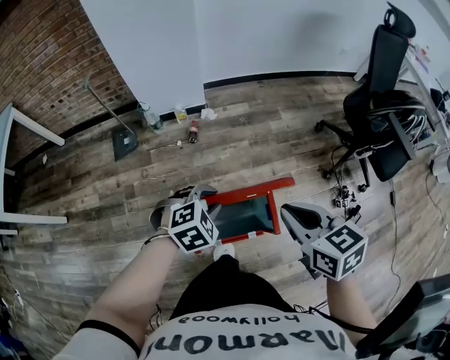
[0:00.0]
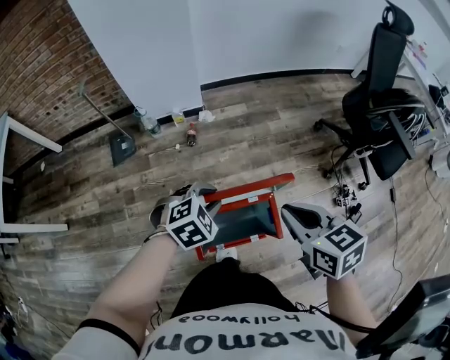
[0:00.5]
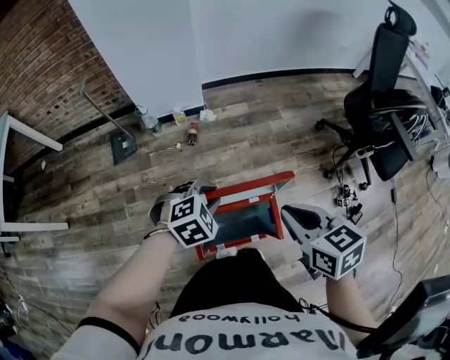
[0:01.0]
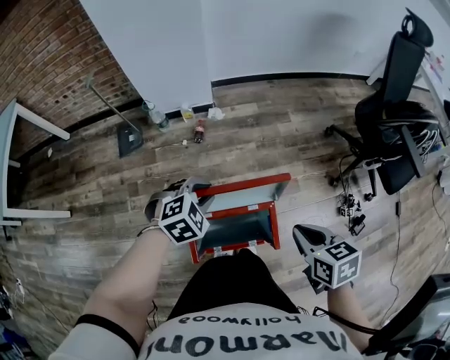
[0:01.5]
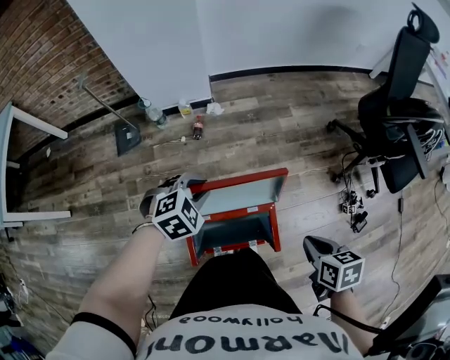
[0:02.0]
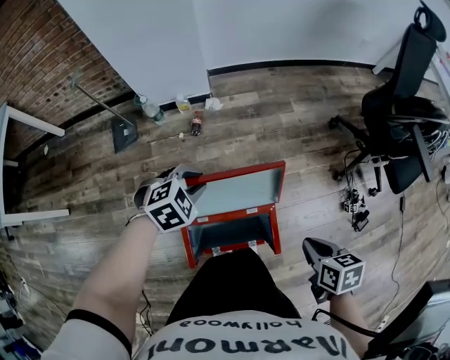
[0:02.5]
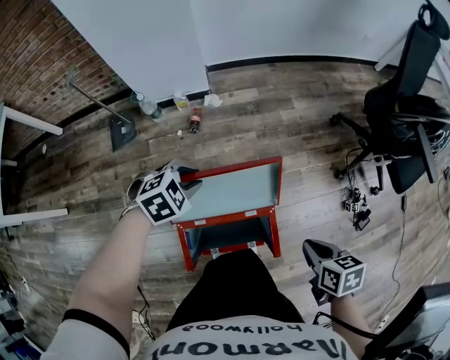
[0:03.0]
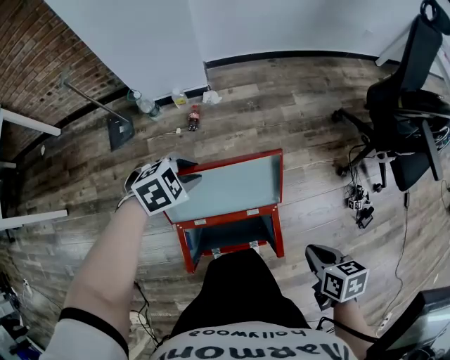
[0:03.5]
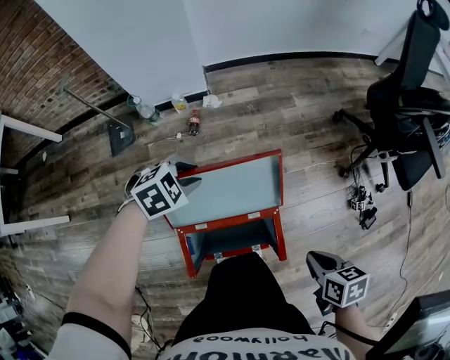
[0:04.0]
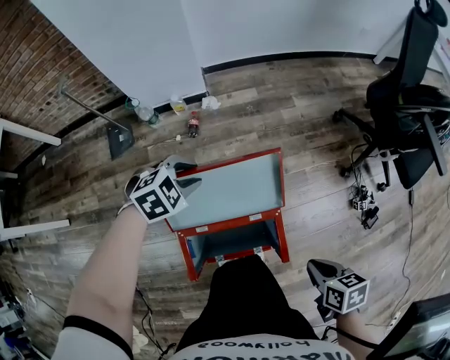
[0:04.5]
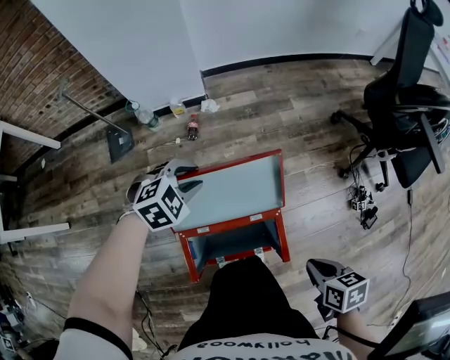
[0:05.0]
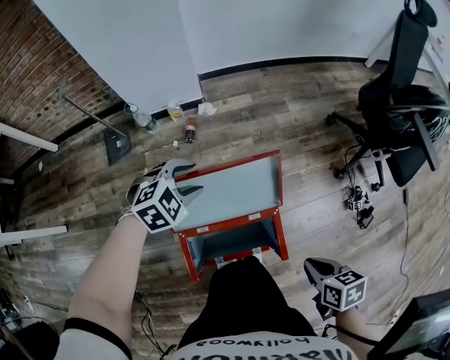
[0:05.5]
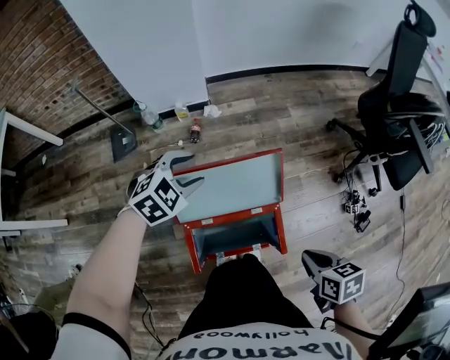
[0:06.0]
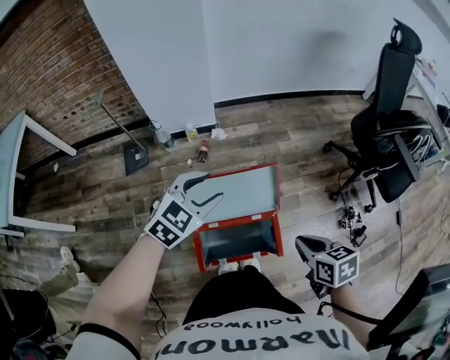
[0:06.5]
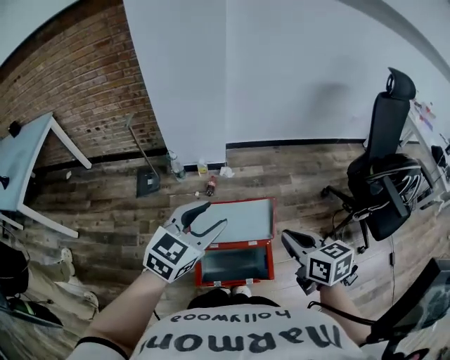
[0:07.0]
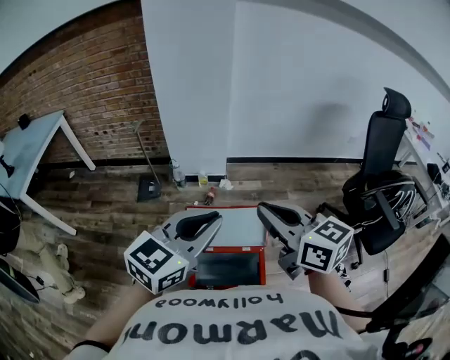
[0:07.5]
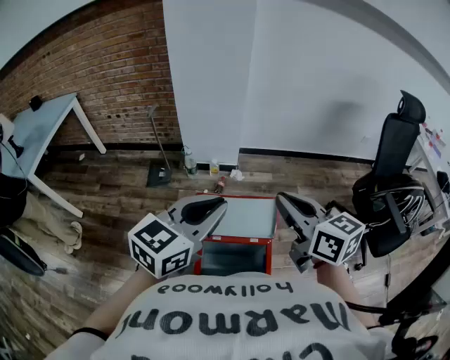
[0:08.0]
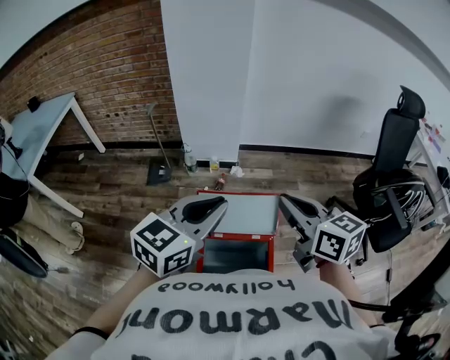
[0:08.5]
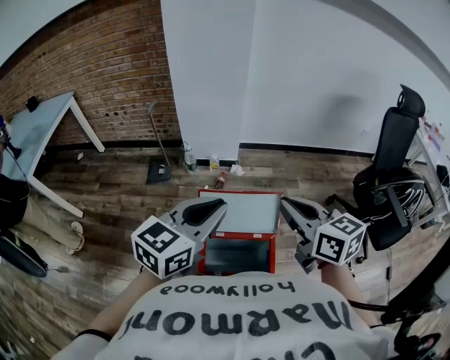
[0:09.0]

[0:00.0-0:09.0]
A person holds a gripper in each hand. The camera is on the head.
0:00.0 to 0:02.0: The right gripper shifts about 15 cm downward and to the right, and turns by approximately 30 degrees. The left gripper is displaced forward by about 10 cm.
0:02.0 to 0:04.5: The right gripper moves downward, roughly 5 cm. Meanwhile the left gripper heads forward and downward, covering some 10 cm.
0:04.5 to 0:07.0: The left gripper is displaced upward and backward by approximately 35 cm, angles its fingers upward, by some 40 degrees, and opens its fingers; the right gripper travels upward and to the left by some 25 cm, and turns by roughly 40 degrees.
0:07.0 to 0:09.0: The right gripper is displaced upward and to the left by approximately 10 cm; the left gripper shifts roughly 10 cm upward and backward, and closes up.

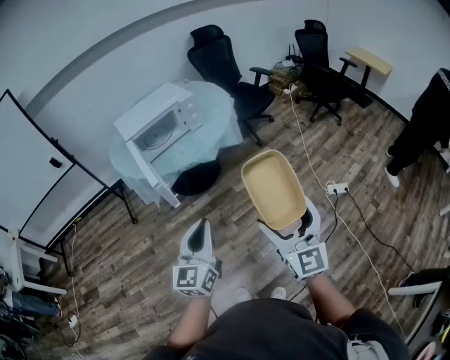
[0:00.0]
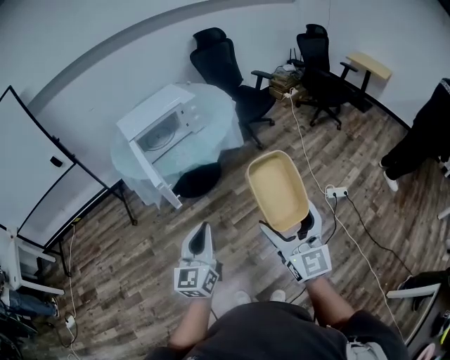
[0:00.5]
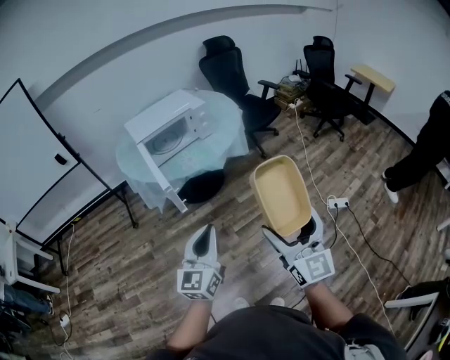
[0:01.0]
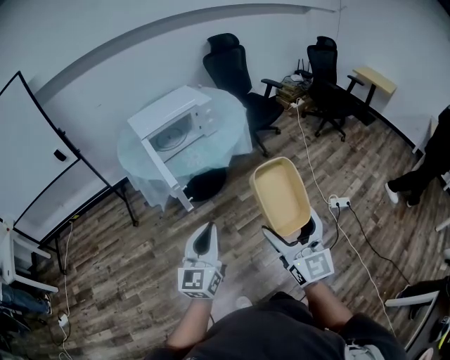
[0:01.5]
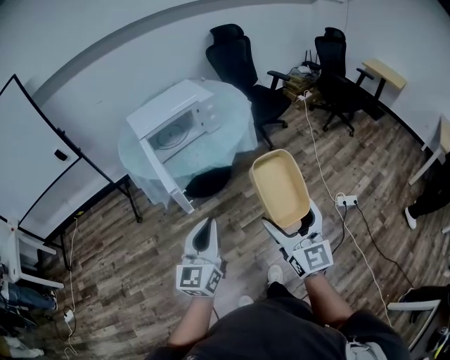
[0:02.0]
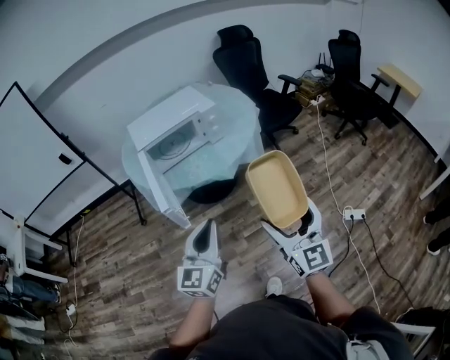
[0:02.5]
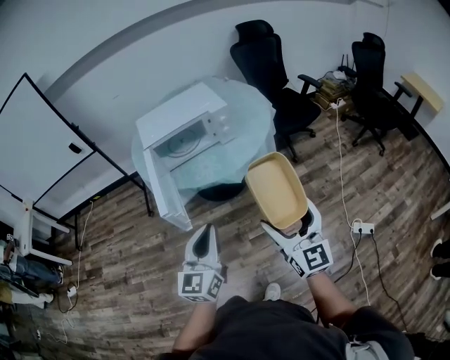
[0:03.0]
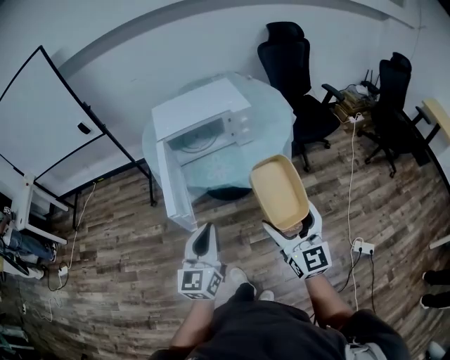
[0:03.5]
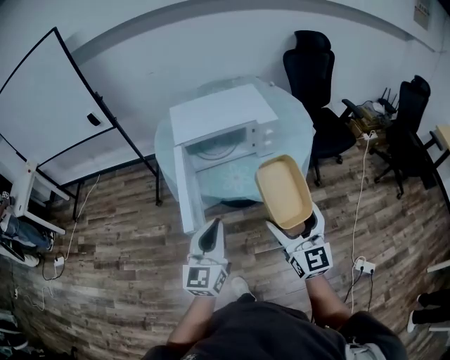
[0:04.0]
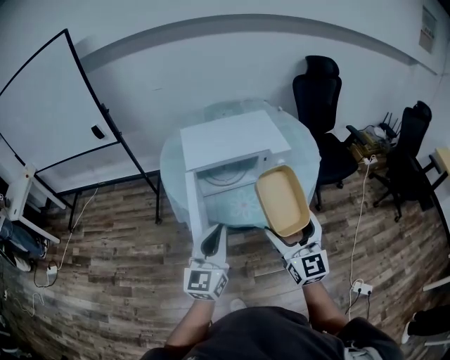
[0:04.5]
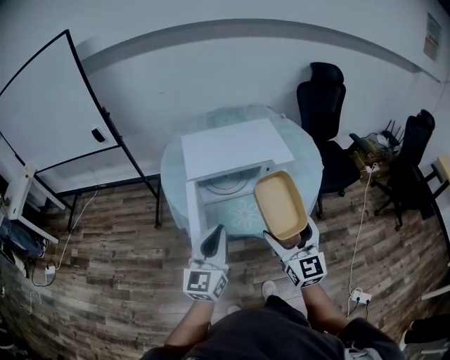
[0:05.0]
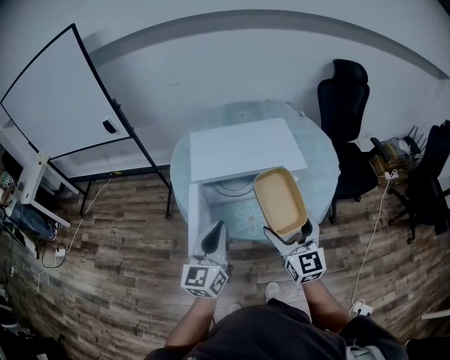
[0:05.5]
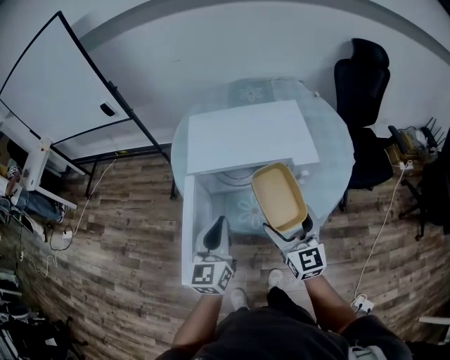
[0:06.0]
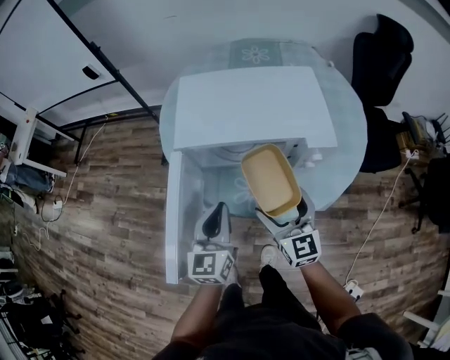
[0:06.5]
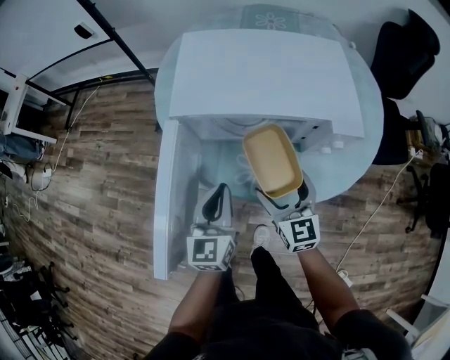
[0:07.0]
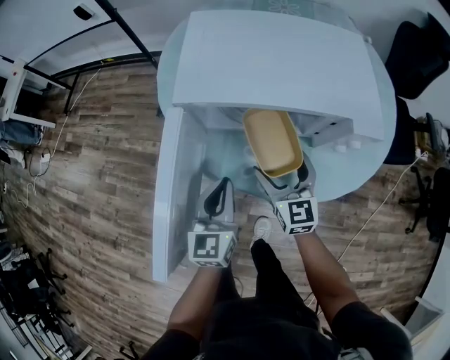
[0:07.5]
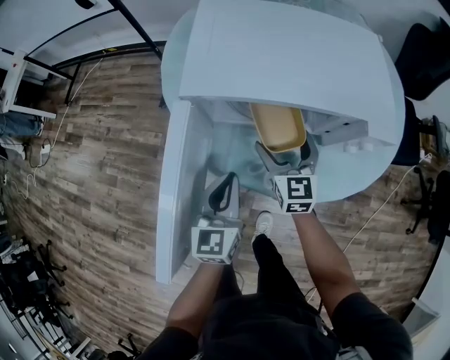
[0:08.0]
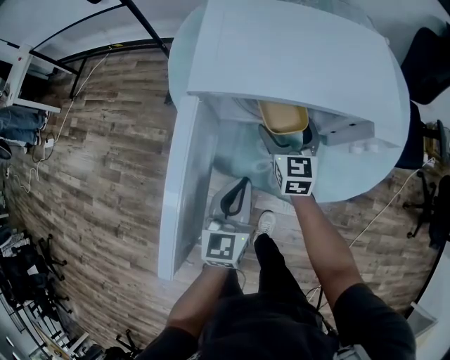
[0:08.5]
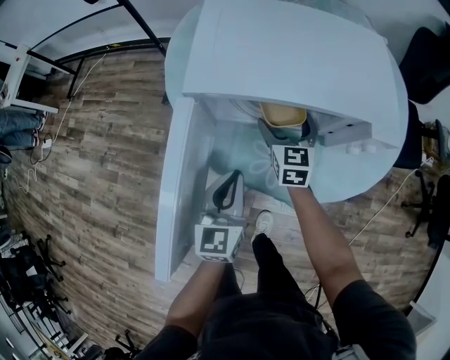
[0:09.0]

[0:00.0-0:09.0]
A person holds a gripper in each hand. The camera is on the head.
0:00.0 to 0:02.0: Both grippers move forward and to the left, about 10 cm.
0:02.0 to 0:04.5: The two grippers go roughly 35 cm forward. The right gripper turns by roughly 20 degrees. Meanwhile the left gripper rotates roughly 20 degrees.
0:04.5 to 0:07.0: The two grippers go roughly 30 cm downward and forward. The left gripper turns by approximately 30 degrees. The right gripper rotates roughly 30 degrees.
0:07.0 to 0:09.0: The right gripper shifts roughly 20 cm forward and downward.

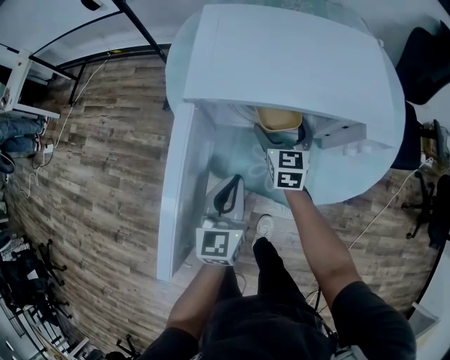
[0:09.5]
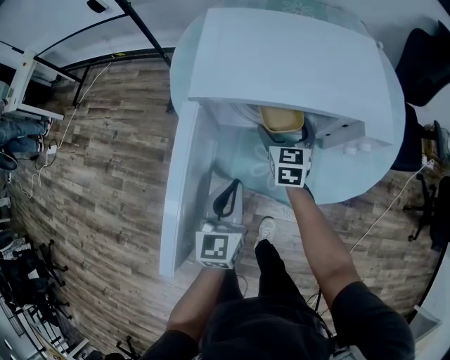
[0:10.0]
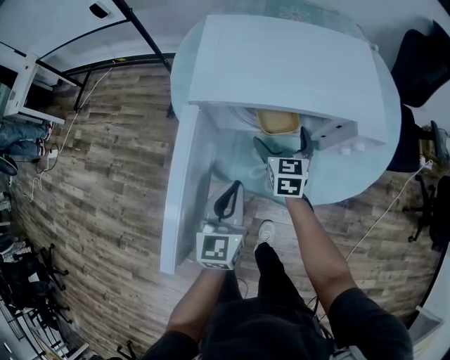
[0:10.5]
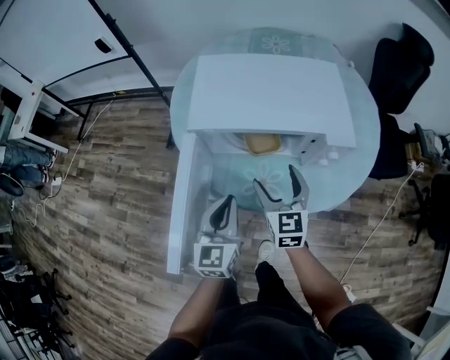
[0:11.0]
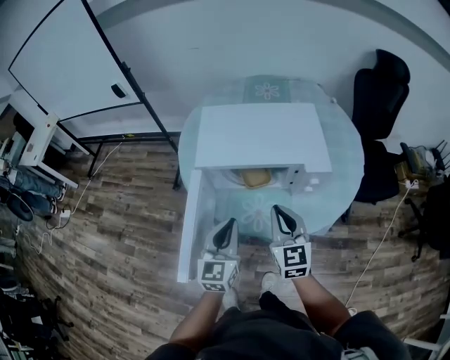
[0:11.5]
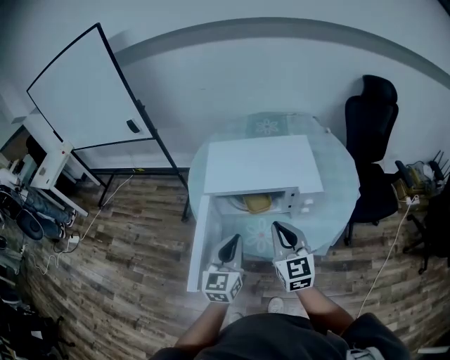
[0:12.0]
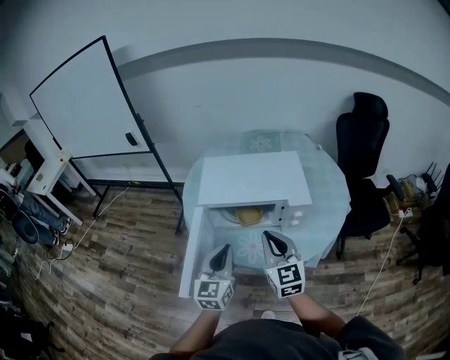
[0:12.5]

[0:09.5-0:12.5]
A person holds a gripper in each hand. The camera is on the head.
0:09.5 to 0:11.0: The left gripper moves upward, some 5 cm. The right gripper heads backward and upward, covering approximately 15 cm.
0:11.0 to 0:12.5: The grippers both shift upward and backward by roughly 15 cm. The right gripper closes.

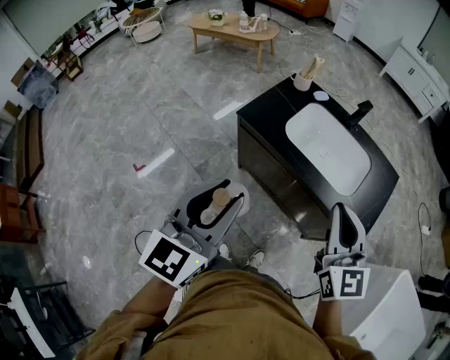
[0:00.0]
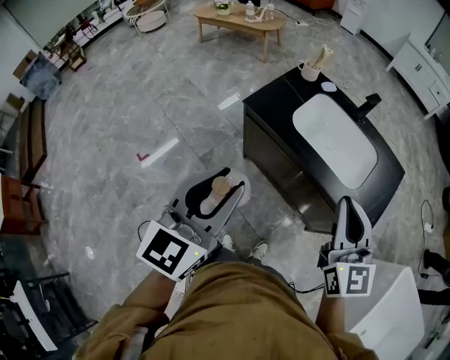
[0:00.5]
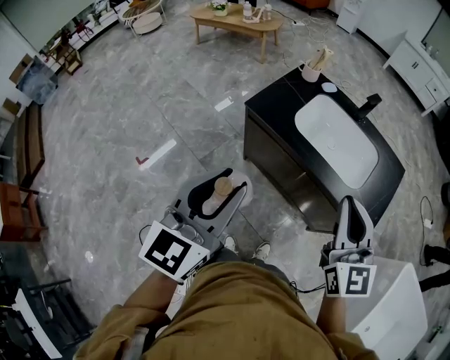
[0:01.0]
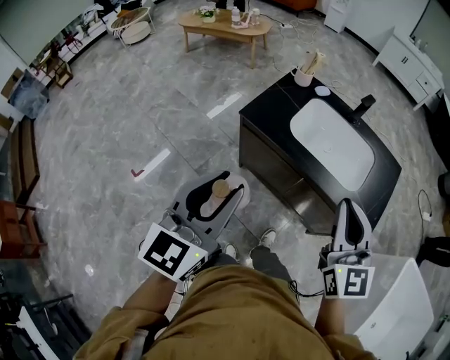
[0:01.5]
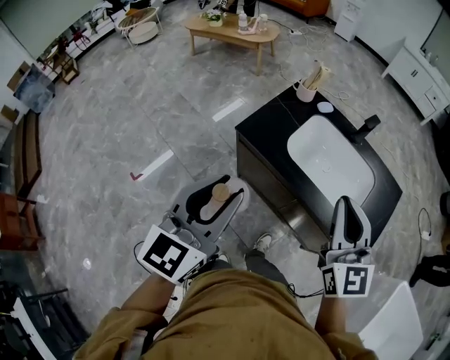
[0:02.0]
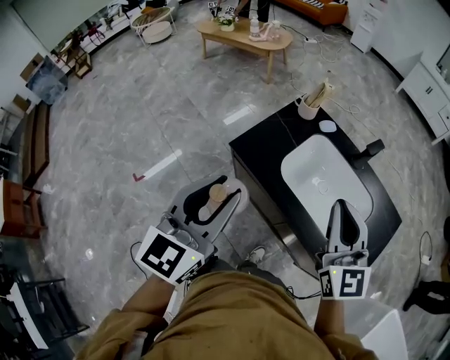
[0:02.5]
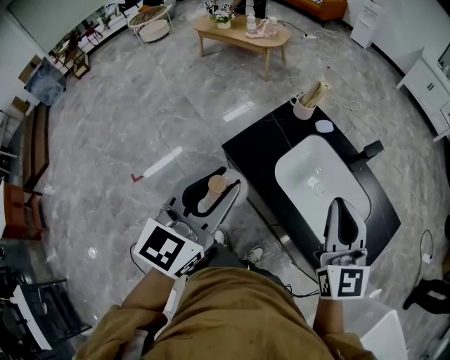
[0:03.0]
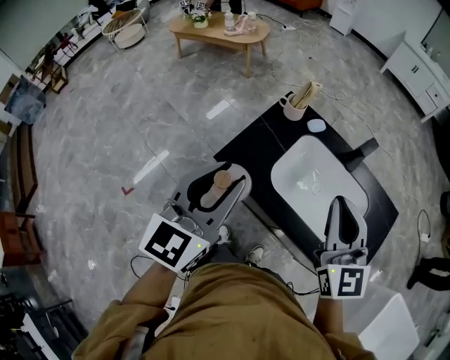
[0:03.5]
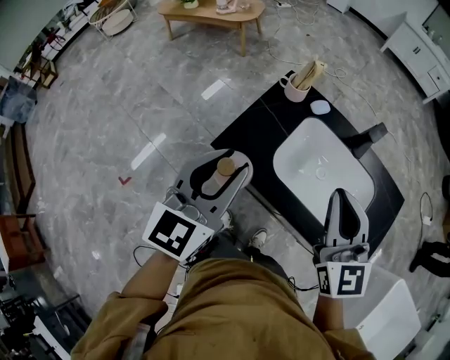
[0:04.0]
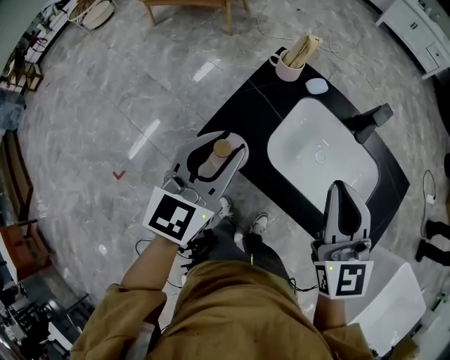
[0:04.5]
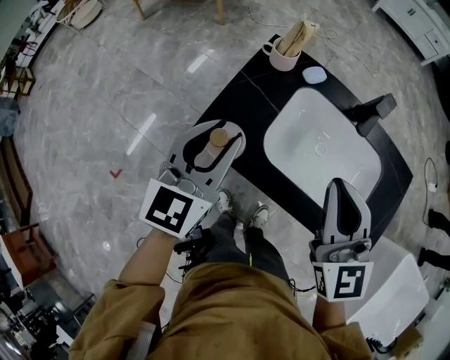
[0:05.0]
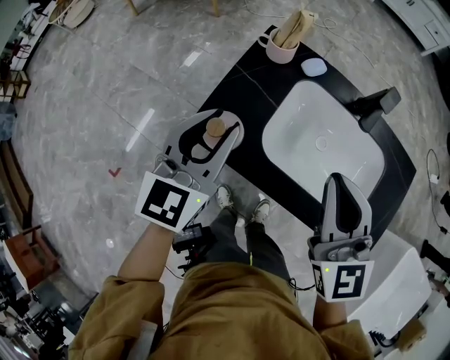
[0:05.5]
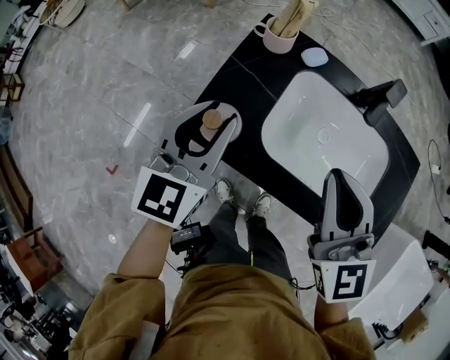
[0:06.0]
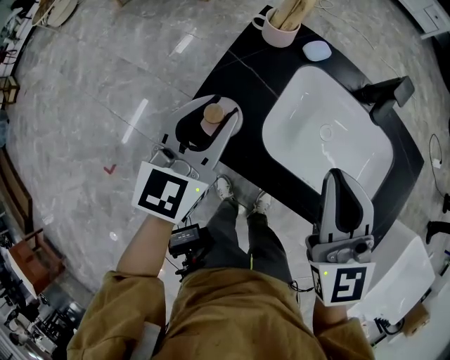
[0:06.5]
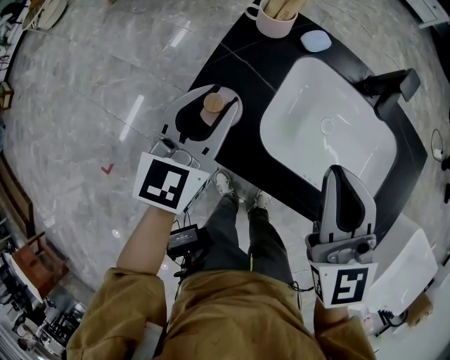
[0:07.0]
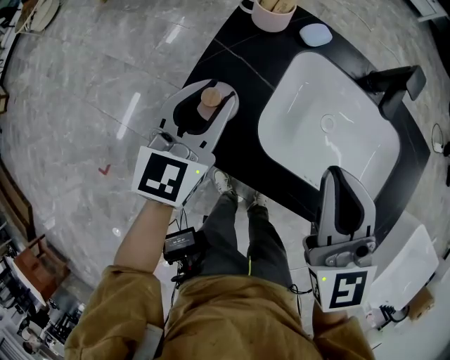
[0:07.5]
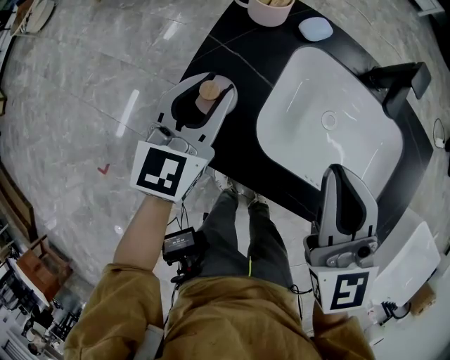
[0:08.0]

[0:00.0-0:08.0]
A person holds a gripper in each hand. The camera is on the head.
0:00.0 to 0:02.0: The two grippers go about 10 cm forward.
0:02.0 to 0:04.0: Both grippers travel together forward, roughly 15 cm.
0:04.0 to 0:06.0: The right gripper heads downward, covering about 5 cm. Meanwhile the left gripper travels downward and forward by approximately 15 cm.
0:06.0 to 0:08.0: The left gripper is displaced downward and forward by approximately 10 cm. The right gripper is displaced downward by about 5 cm.
